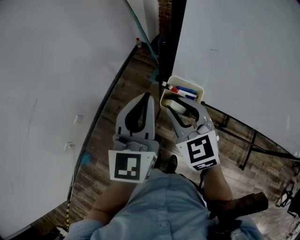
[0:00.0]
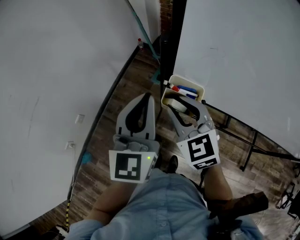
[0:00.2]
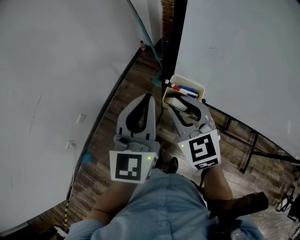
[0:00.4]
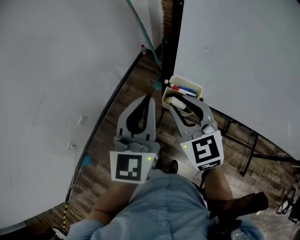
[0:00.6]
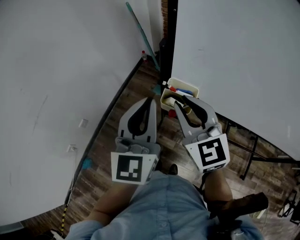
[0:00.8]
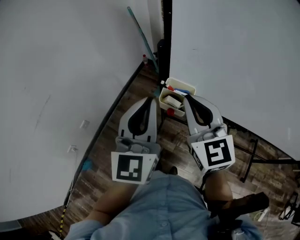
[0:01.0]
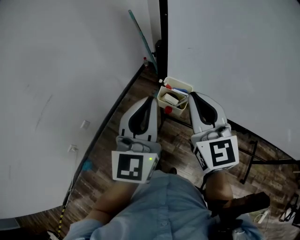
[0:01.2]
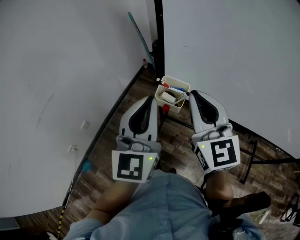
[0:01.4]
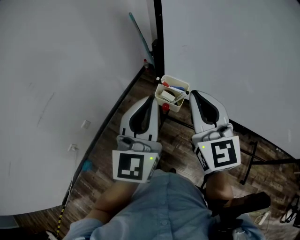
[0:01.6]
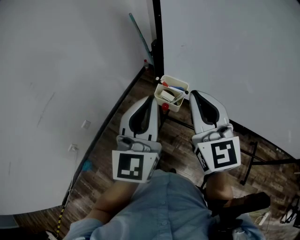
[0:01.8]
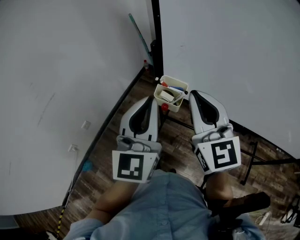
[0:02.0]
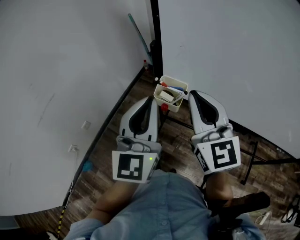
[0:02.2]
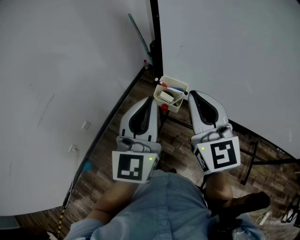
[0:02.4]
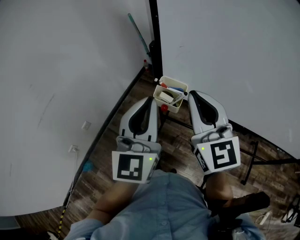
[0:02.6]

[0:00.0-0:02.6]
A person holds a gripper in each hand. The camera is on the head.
0:00.0 to 0:01.2: The left gripper travels backward and upward by approximately 10 cm. The right gripper heads upward, backward and to the right, covering approximately 15 cm, turns by roughly 30 degrees, and closes its fingers.
0:01.2 to 0:02.6: There are only small adjustments of the grippers.

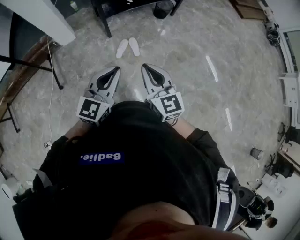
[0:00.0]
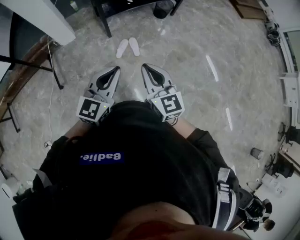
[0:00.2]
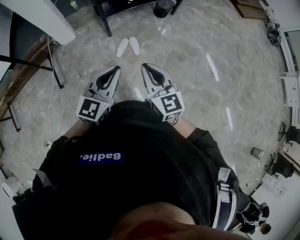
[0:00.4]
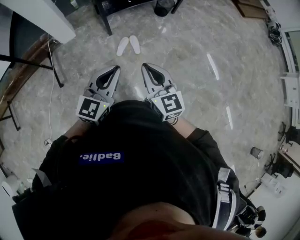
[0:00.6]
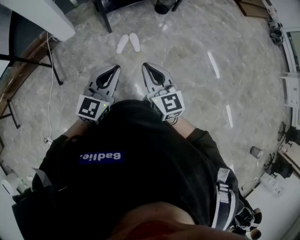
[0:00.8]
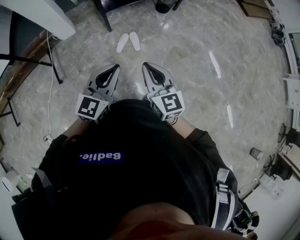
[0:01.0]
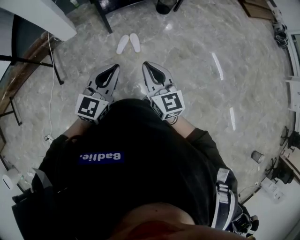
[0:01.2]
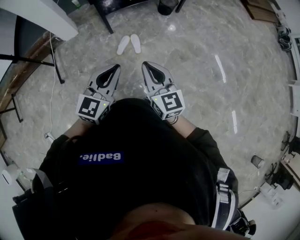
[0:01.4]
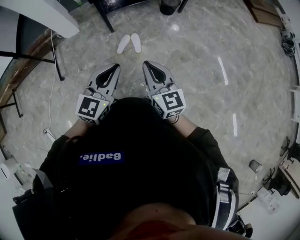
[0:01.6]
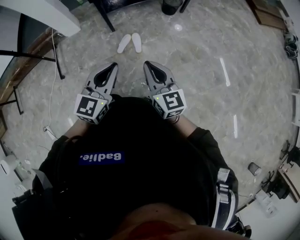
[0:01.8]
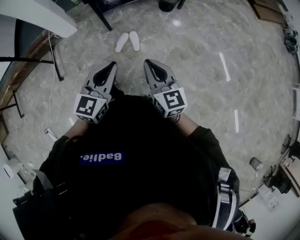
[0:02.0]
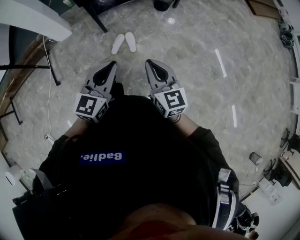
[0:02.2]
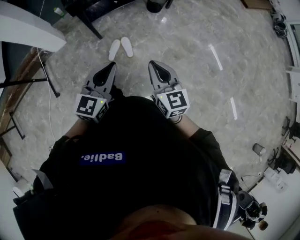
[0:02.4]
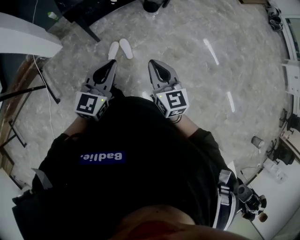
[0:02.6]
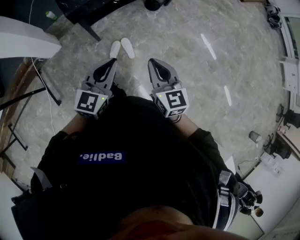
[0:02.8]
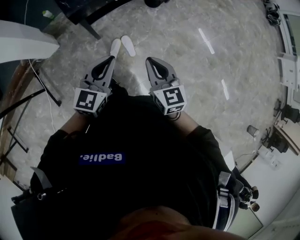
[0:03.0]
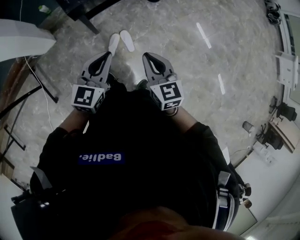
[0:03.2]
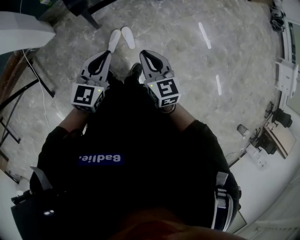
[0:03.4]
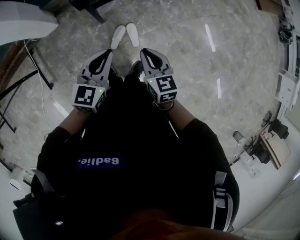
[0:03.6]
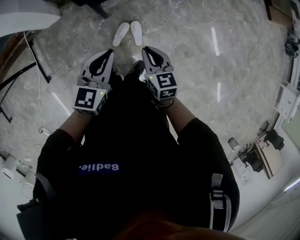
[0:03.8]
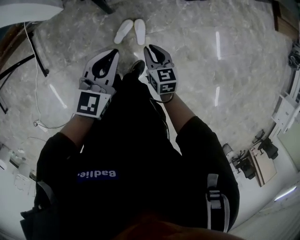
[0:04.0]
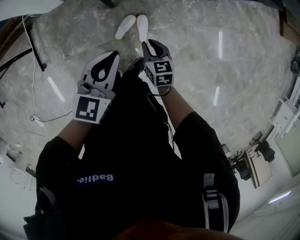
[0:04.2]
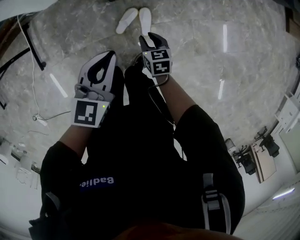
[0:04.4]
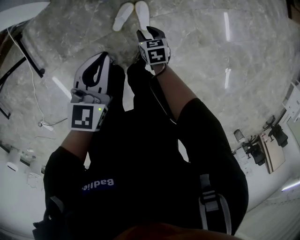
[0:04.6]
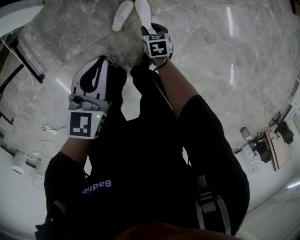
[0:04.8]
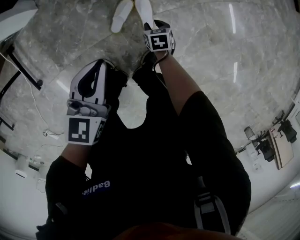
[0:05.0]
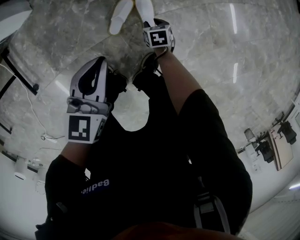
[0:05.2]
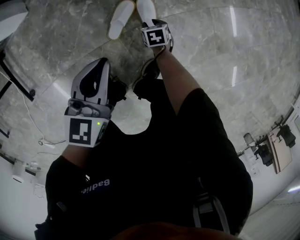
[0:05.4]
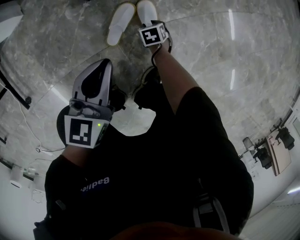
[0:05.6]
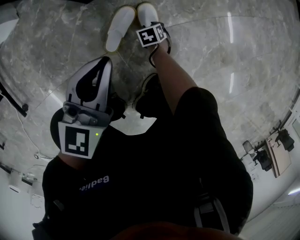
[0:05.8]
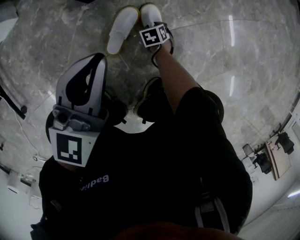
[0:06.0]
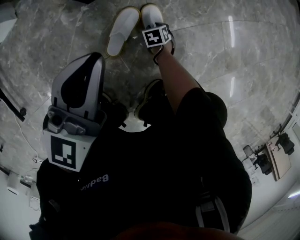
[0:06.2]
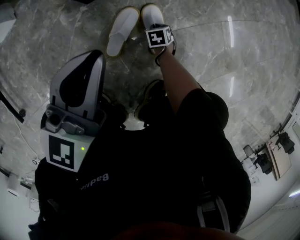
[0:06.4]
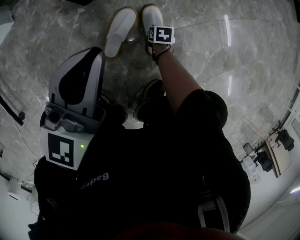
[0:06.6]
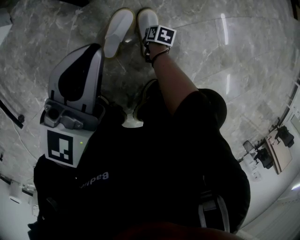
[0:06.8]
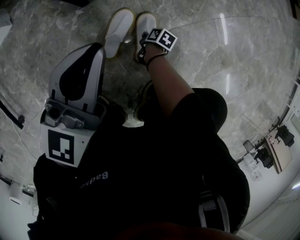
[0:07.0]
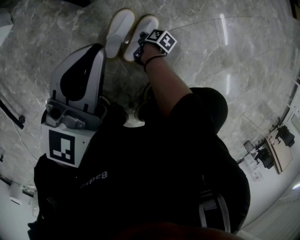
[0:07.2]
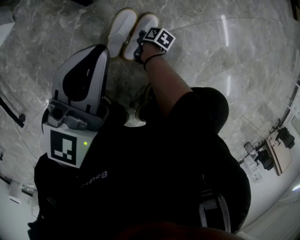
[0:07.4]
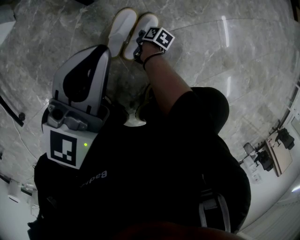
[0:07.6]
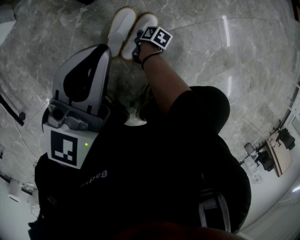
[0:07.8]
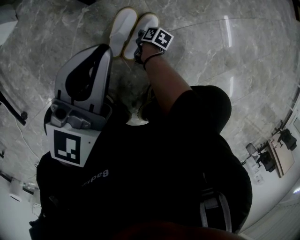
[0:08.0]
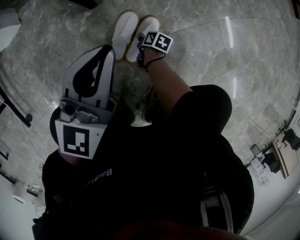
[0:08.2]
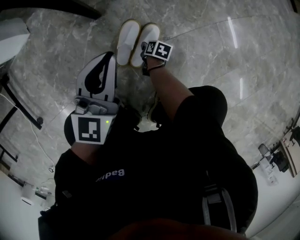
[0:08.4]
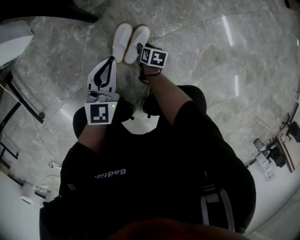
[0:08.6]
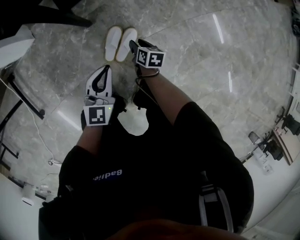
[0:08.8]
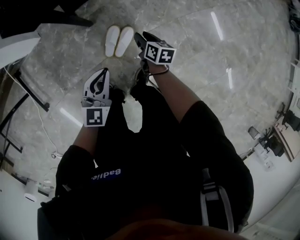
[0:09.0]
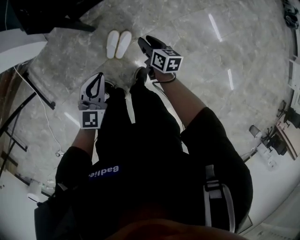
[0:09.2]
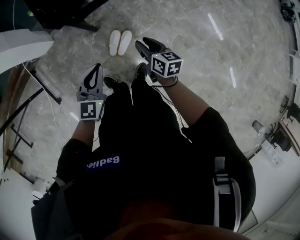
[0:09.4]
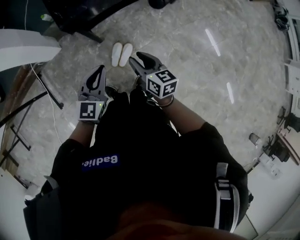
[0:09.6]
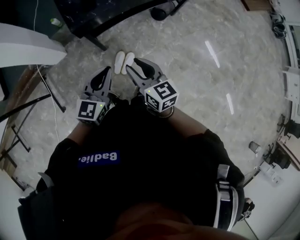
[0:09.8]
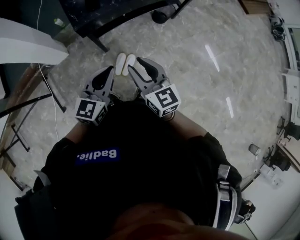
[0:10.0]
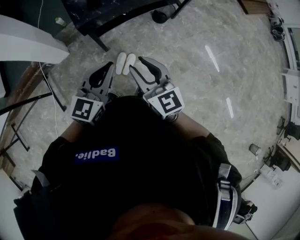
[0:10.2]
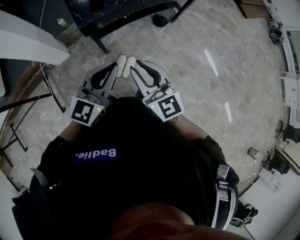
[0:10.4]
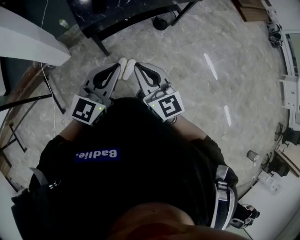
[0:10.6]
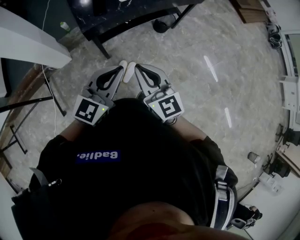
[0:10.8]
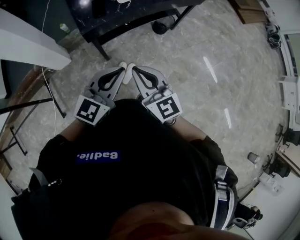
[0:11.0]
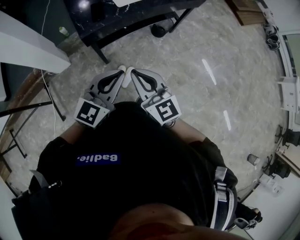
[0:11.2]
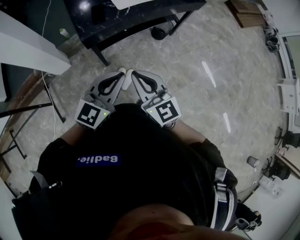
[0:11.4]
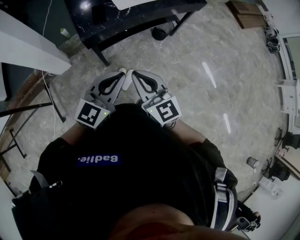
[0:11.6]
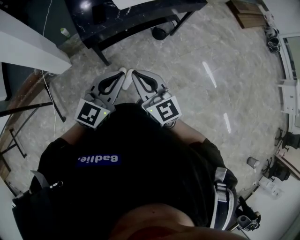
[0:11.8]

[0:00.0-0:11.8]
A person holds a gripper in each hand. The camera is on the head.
0:00.0 to 0:01.4: Both grippers travel together to the right, some 10 cm.
0:01.4 to 0:03.0: Both grippers travel together forward and to the left, approximately 35 cm. The right gripper rotates roughly 20 degrees.
0:03.0 to 0:04.4: The right gripper moves downward, approximately 40 cm, rotates some 30 degrees, and opens up. The left gripper travels downward and forward by about 20 cm, and changes its angle by approximately 30 degrees.
0:04.4 to 0:06.0: The left gripper moves downward, roughly 40 cm. The right gripper moves downward, some 60 cm, and rotates roughly 30 degrees.
0:06.0 to 0:07.4: The right gripper twists some 60 degrees clockwise, seen from behind, and closes up.
0:07.4 to 0:08.8: The left gripper shifts some 10 cm upward and backward; the right gripper is displaced upward by approximately 35 cm, swivels some 30 degrees, and opens its fingers.
0:08.8 to 0:10.4: The grippers both shift upward by some 70 cm. The right gripper tips its fingers upward by roughly 50 degrees. The left gripper swivels approximately 20 degrees.
0:10.4 to 0:11.8: The right gripper closes.

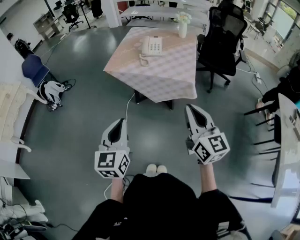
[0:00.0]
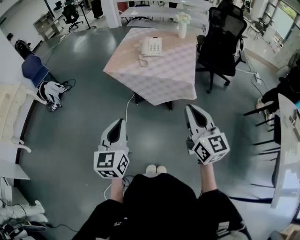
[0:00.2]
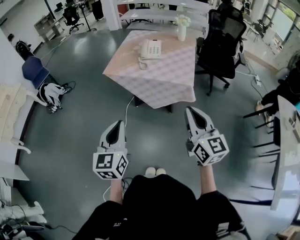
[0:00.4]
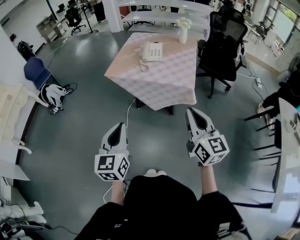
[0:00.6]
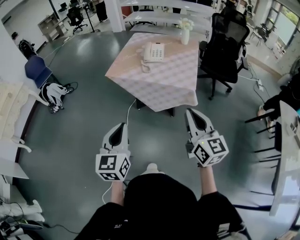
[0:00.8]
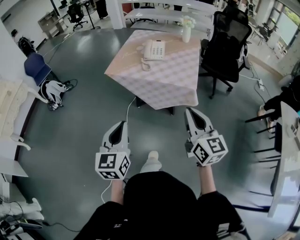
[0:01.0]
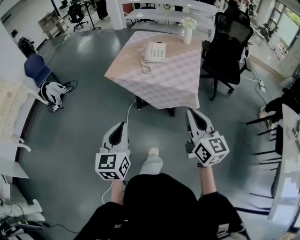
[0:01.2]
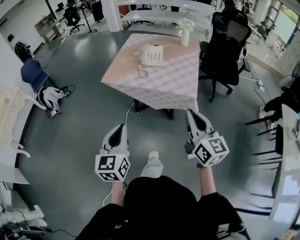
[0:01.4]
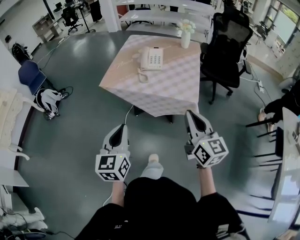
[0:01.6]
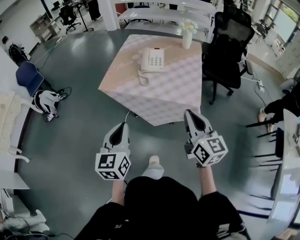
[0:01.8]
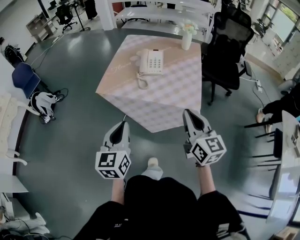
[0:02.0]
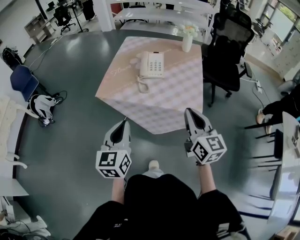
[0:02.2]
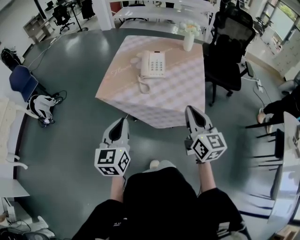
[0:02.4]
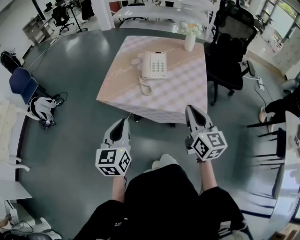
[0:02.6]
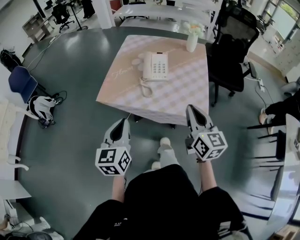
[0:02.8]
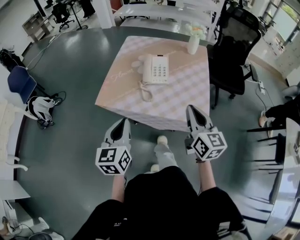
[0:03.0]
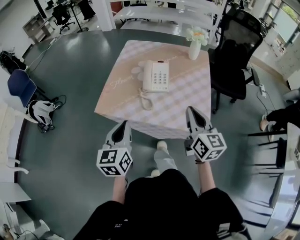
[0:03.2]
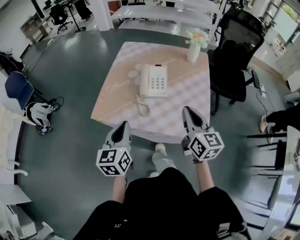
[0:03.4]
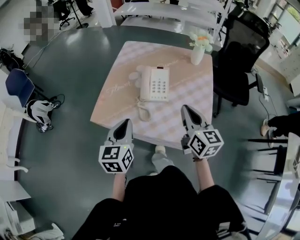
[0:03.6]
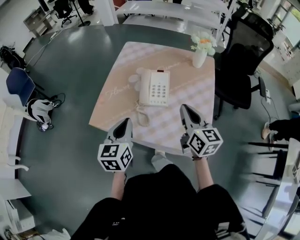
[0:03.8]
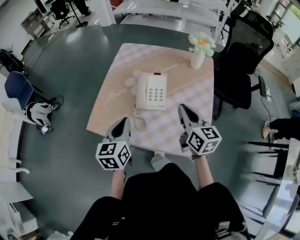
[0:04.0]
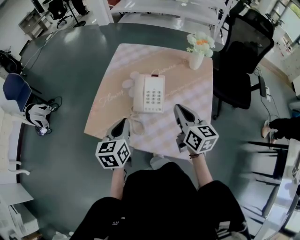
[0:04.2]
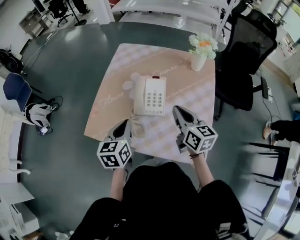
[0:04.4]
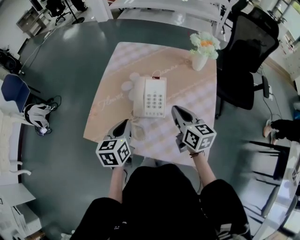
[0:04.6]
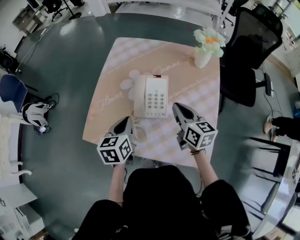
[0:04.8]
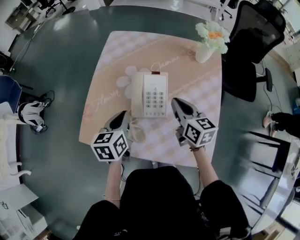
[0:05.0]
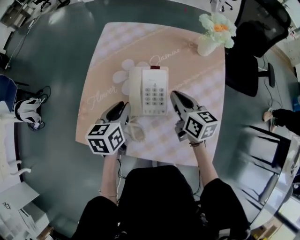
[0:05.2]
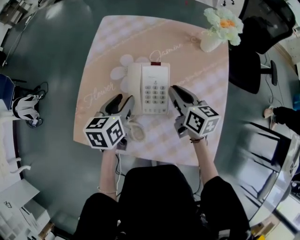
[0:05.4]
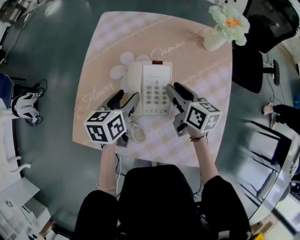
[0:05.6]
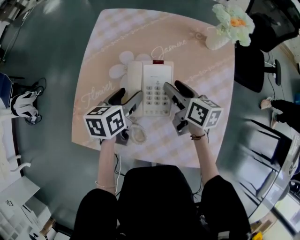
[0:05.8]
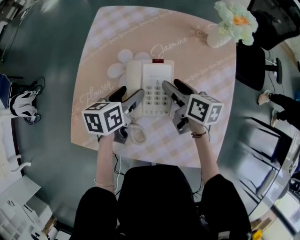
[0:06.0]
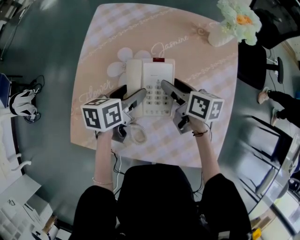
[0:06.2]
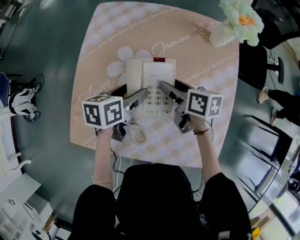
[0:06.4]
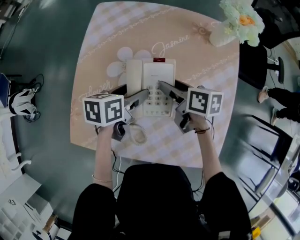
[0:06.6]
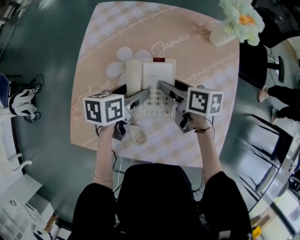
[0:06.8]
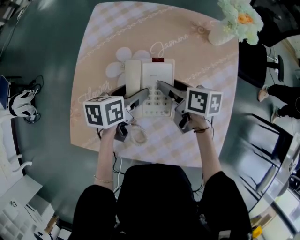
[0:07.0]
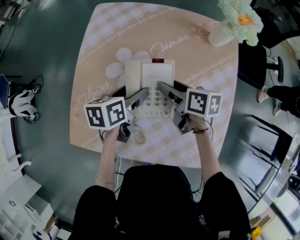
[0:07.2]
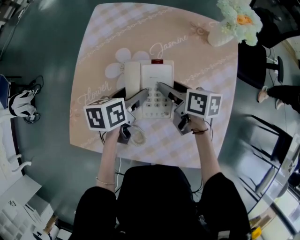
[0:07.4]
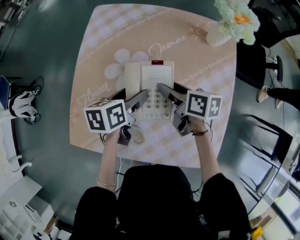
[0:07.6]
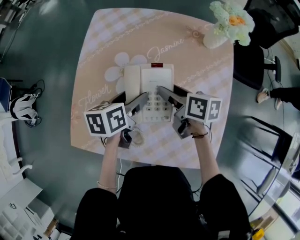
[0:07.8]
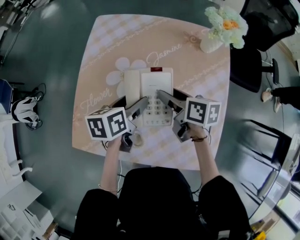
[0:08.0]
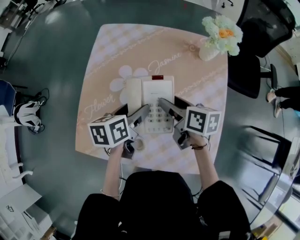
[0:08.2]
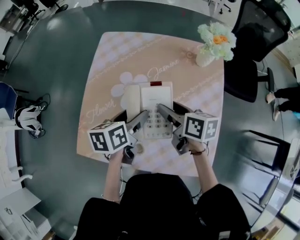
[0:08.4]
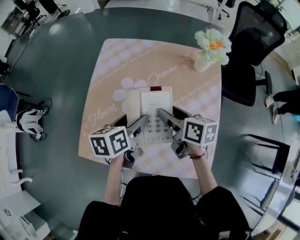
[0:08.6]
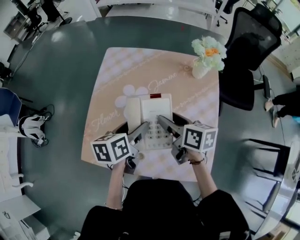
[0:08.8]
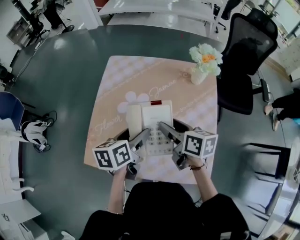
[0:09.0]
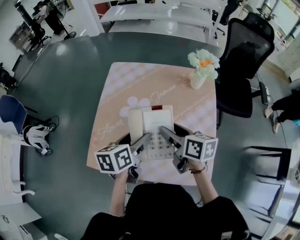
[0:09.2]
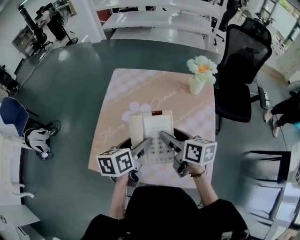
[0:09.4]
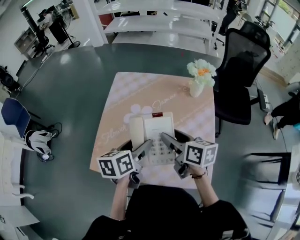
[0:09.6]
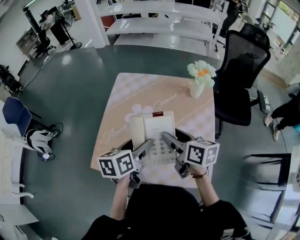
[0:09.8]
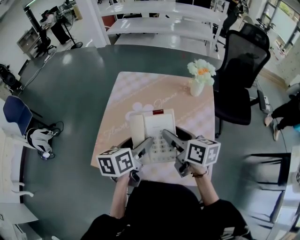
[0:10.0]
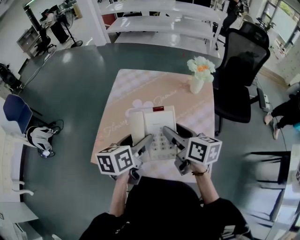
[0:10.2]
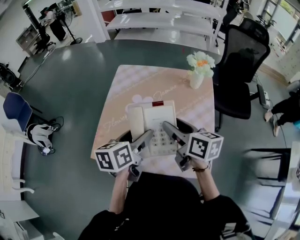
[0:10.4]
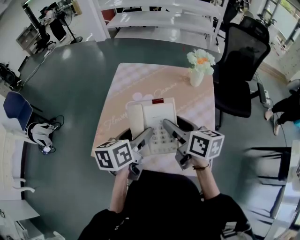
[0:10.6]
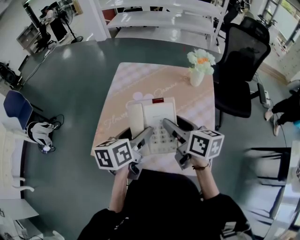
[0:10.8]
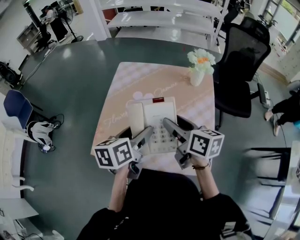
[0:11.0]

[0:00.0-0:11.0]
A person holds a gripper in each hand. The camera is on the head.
0:00.0 to 0:01.6: The grippers both shift forward by about 15 cm.
0:01.6 to 0:03.2: Both grippers move forward, about 25 cm.
0:03.2 to 0:04.8: Both grippers travel together forward and downward, about 25 cm. The right gripper rotates roughly 20 degrees. Meanwhile the left gripper swivels about 20 degrees.
0:04.8 to 0:06.2: The left gripper shifts roughly 15 cm forward and downward, swivels some 30 degrees, and opens its fingers. The right gripper goes about 15 cm downward and forward, changes its angle by approximately 30 degrees, and opens.
0:06.2 to 0:07.8: There are only small adjustments of the grippers.
0:07.8 to 0:09.4: The two grippers go roughly 15 cm upward and backward.
0:09.4 to 0:11.0: Both grippers travel together upward, some 5 cm.
